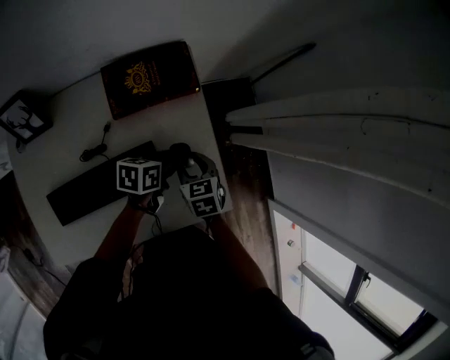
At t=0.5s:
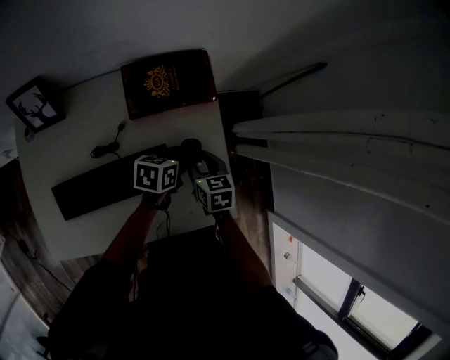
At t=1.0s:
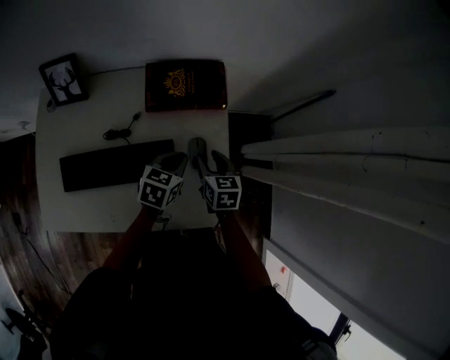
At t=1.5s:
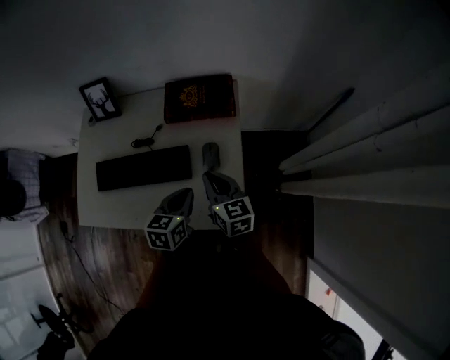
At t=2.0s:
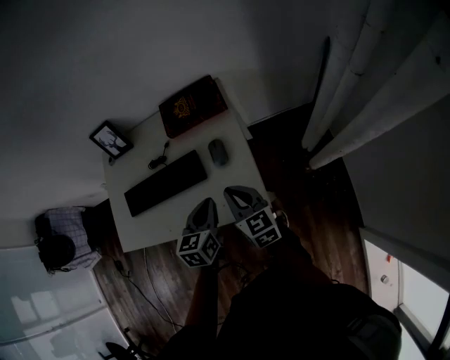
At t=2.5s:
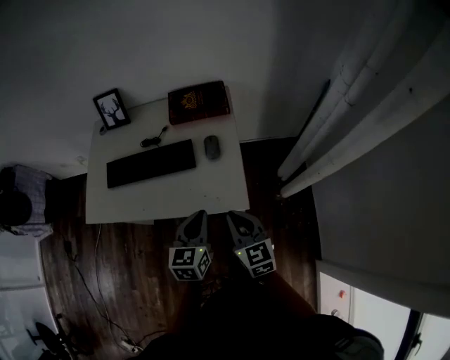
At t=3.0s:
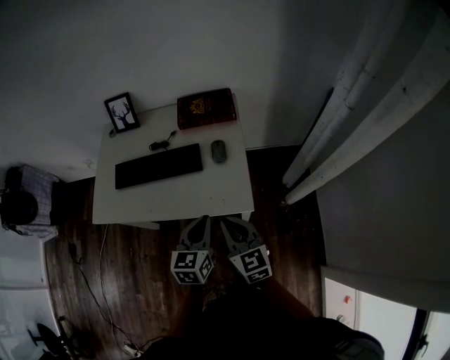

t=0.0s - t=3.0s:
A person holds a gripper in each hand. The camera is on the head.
t=0.0s - t=1.5s: The right gripper goes about 10 cm upward, angles its fingers upward, by some 40 degrees, and closes up, while the left gripper ends up approximately 15 cm from where it was, turns by approximately 40 degrees, and closes.
t=1.5s - t=3.0s: Both grippers move backward, approximately 20 cm.

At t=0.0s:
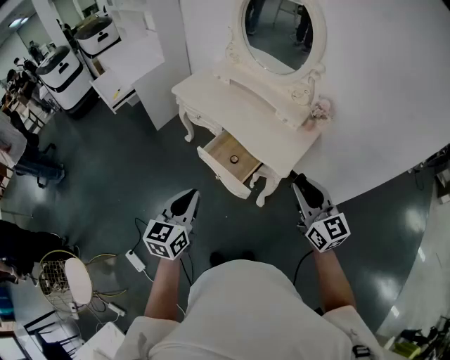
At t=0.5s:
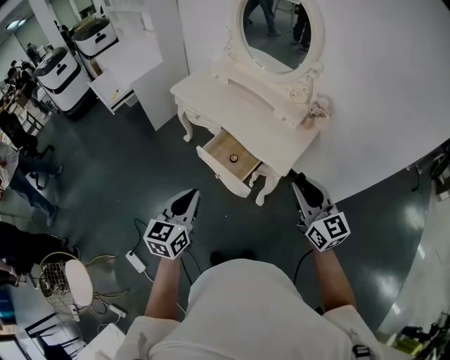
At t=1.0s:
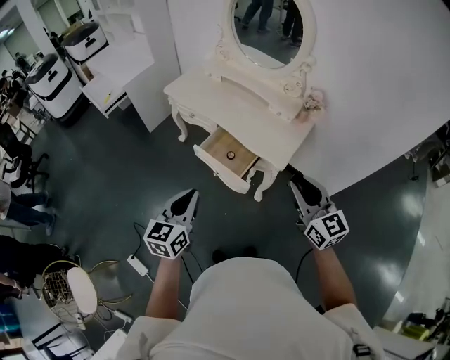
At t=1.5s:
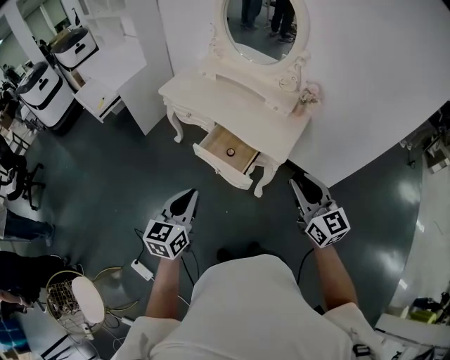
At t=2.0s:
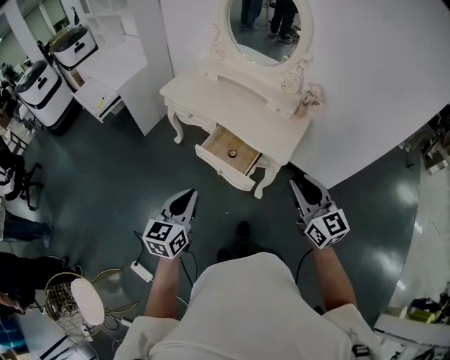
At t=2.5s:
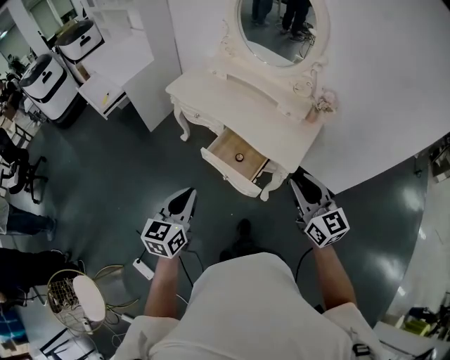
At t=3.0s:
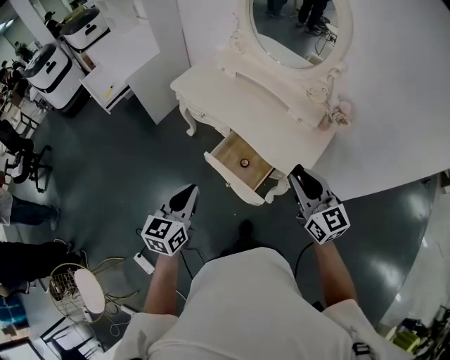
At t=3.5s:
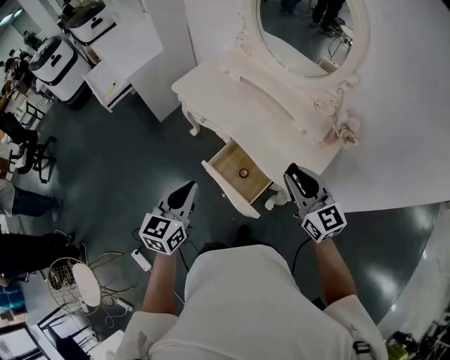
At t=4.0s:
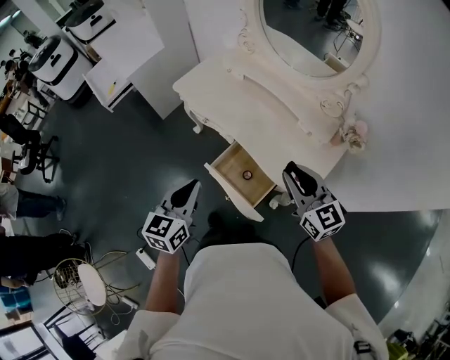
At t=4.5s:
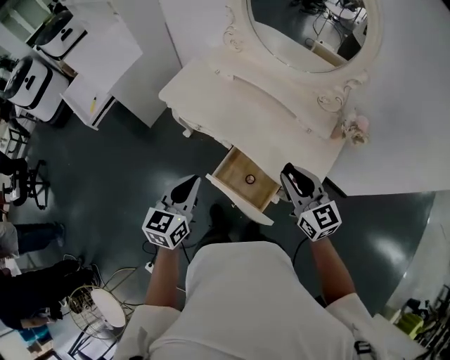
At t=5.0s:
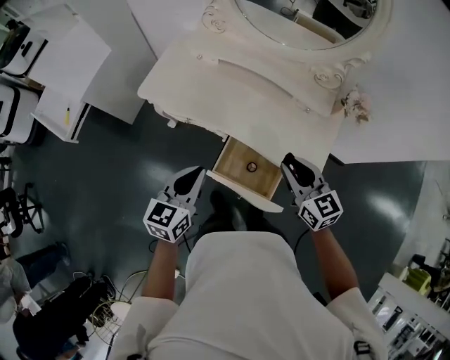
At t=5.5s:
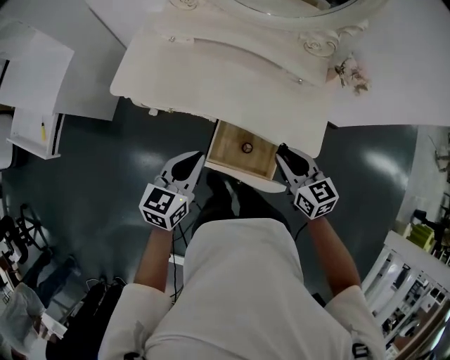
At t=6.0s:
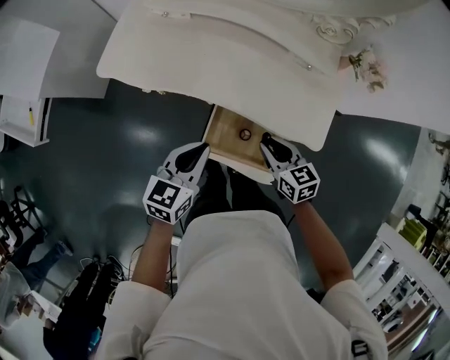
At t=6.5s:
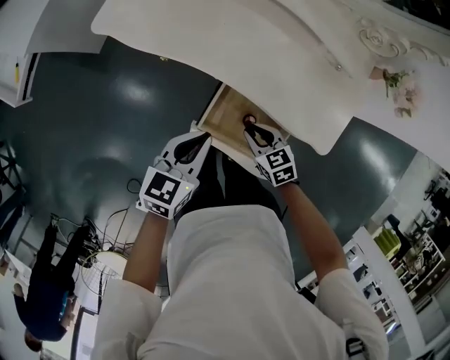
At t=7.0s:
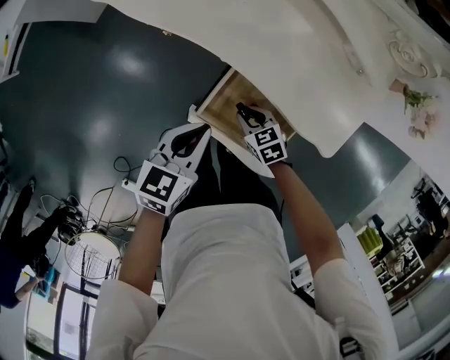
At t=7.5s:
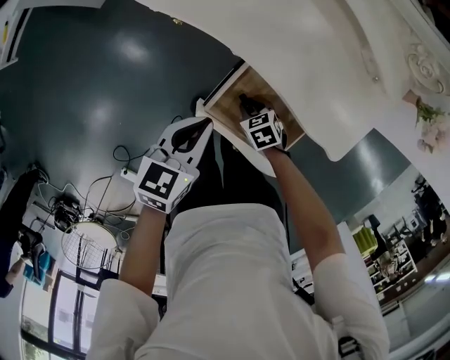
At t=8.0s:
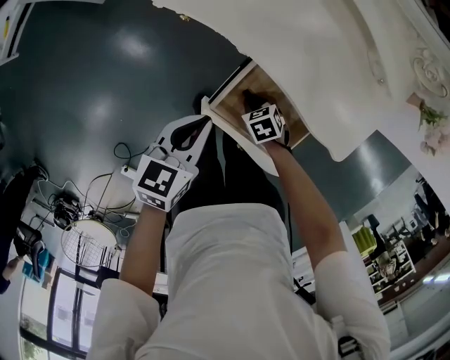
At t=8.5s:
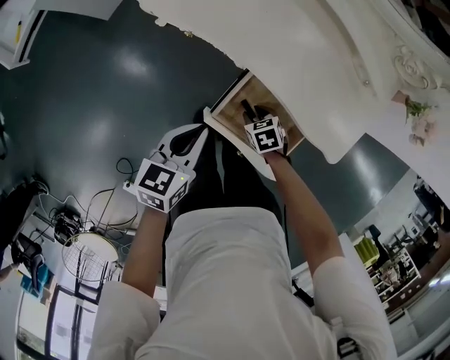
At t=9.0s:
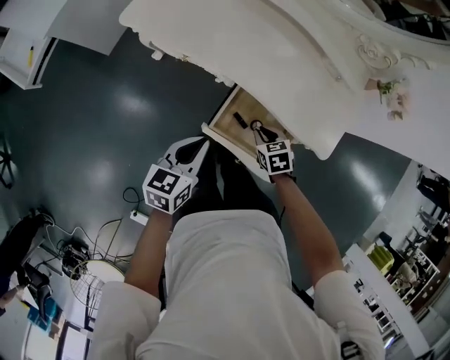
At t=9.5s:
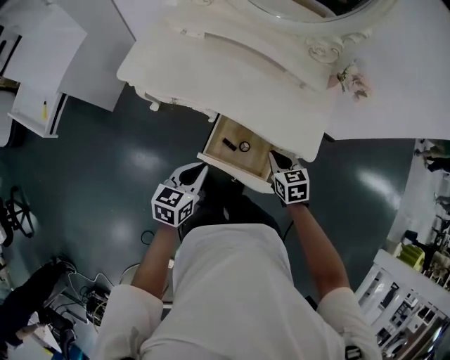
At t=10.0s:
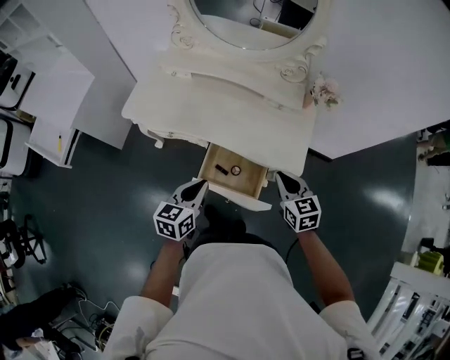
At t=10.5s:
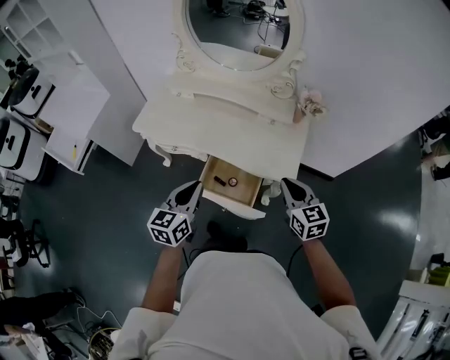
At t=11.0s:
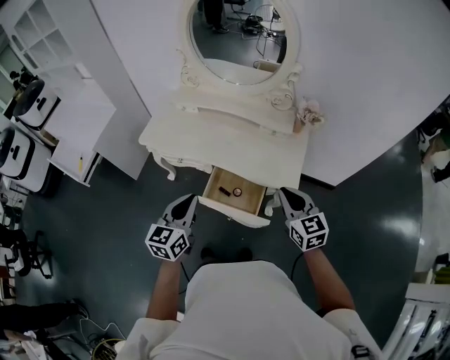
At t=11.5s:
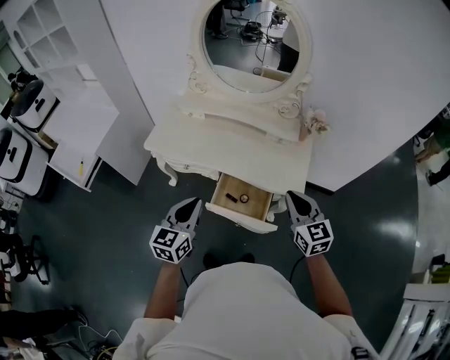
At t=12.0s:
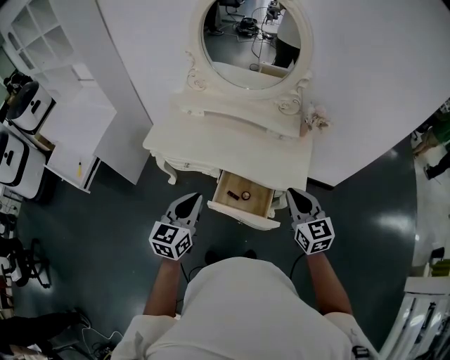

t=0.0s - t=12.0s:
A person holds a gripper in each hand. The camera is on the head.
t=0.0s - t=2.0s: Both grippers travel together to the left, about 5 cm.
t=2.0s - t=4.0s: Both grippers move forward, approximately 25 cm.
t=4.0s - t=6.0s: The right gripper heads downward, covering about 25 cm, and tilts its fingers some 30 degrees downward, while the left gripper shifts by about 20 cm, and turns by some 40 degrees.
t=6.0s - t=8.0s: The right gripper heads downward, covering some 25 cm, and tips its fingers downward by about 40 degrees; the left gripper is displaced downward by roughly 10 cm.
t=8.0s - t=10.0s: The left gripper travels upward by about 15 cm; the right gripper travels upward by approximately 40 cm, and tilts its fingers some 40 degrees upward.
t=10.0s - t=12.0s: The left gripper goes about 15 cm upward and to the left. The right gripper moves upward and backward, roughly 15 cm.

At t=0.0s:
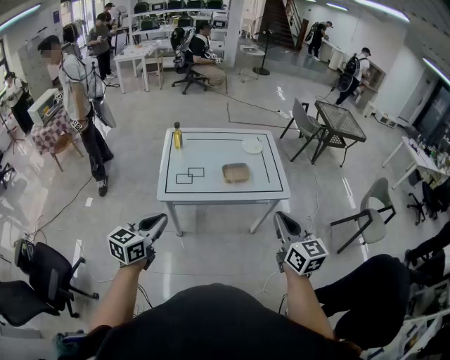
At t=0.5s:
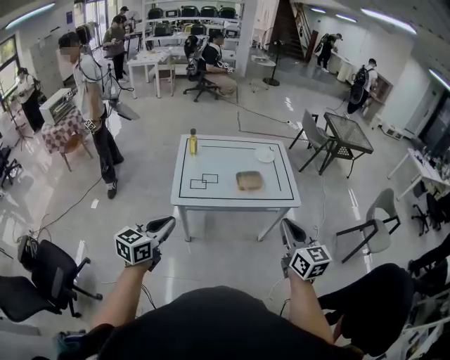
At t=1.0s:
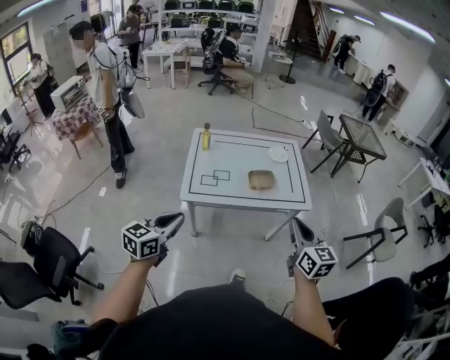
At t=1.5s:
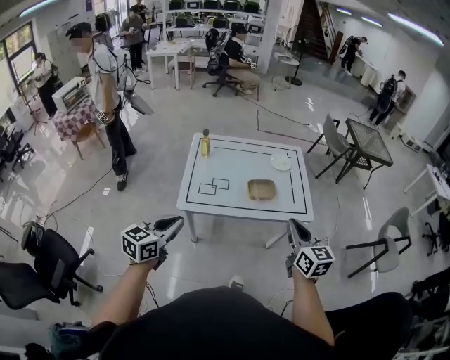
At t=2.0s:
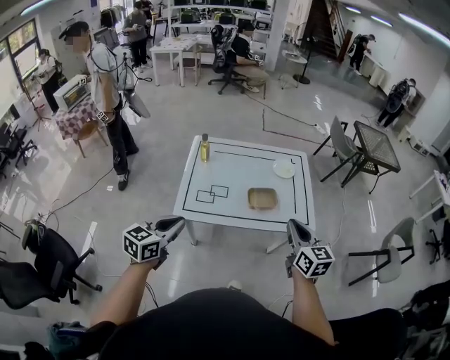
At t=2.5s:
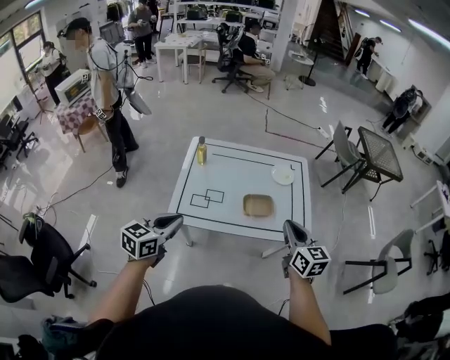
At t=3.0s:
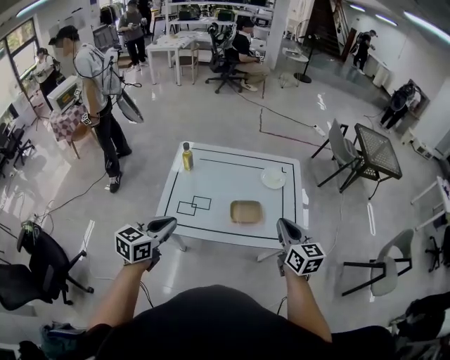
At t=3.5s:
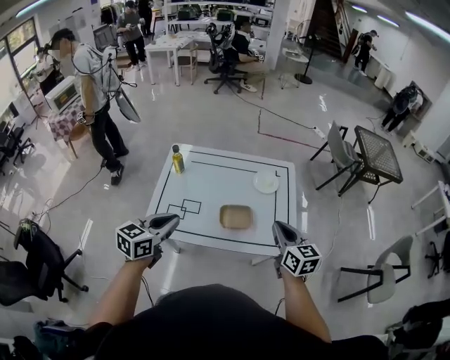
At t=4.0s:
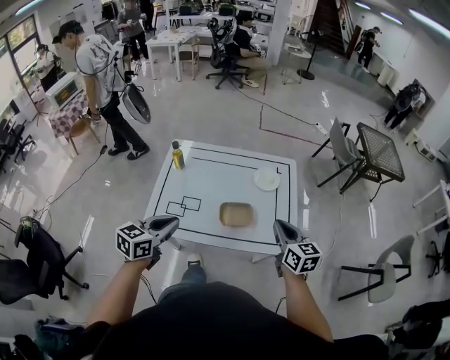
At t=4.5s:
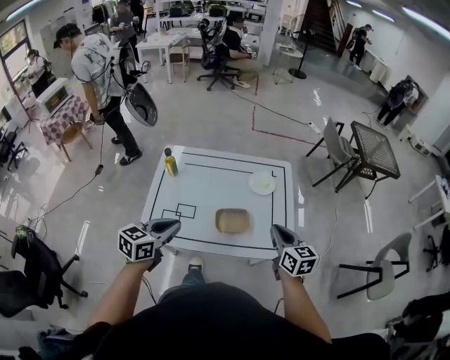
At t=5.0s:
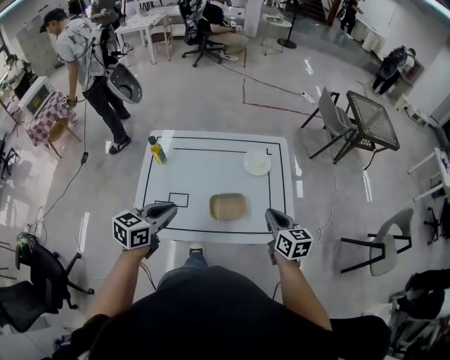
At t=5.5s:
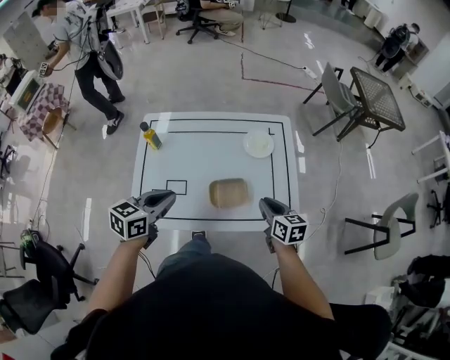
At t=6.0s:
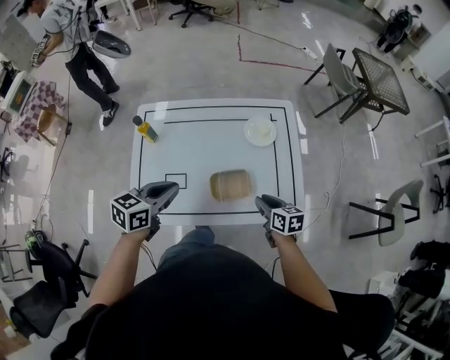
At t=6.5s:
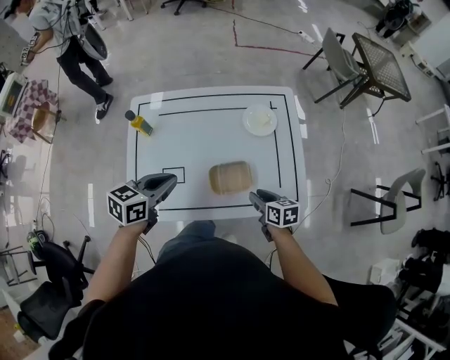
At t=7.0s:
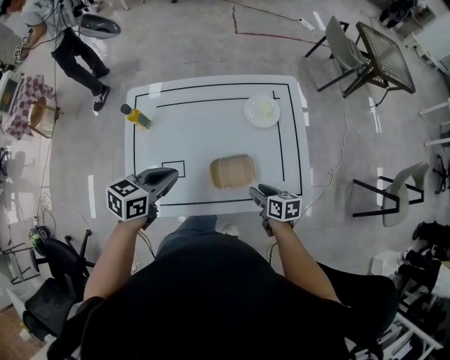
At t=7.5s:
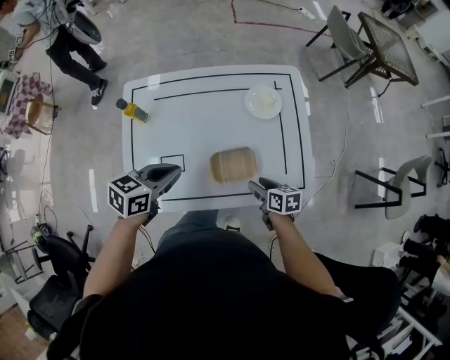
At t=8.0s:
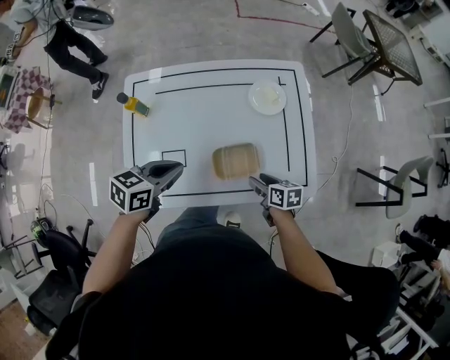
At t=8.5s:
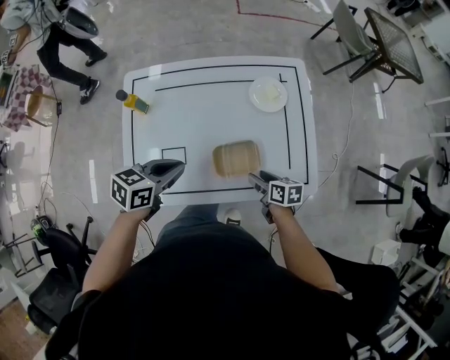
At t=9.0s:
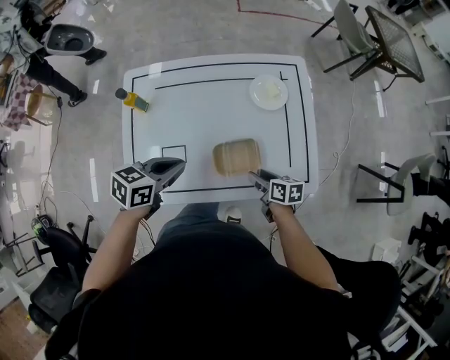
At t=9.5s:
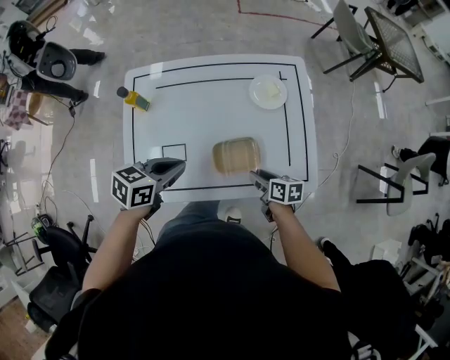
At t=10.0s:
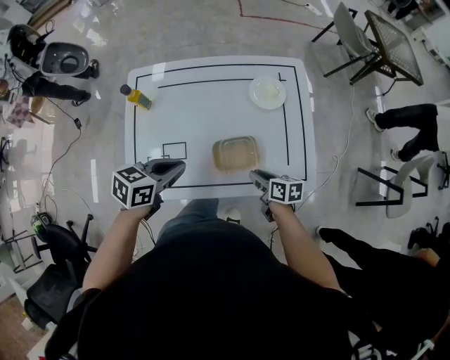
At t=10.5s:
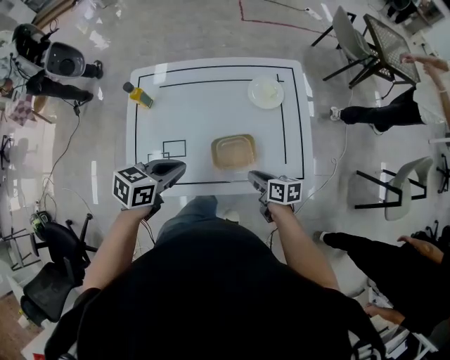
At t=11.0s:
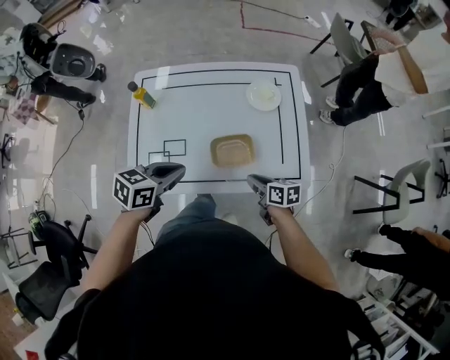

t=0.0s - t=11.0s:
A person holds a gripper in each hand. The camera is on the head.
t=0.0s - t=2.0s: Both grippers travel together forward, roughly 20 cm.
t=2.0s - t=3.5s: The two grippers go about 20 cm forward and to the right.
t=3.5s - t=5.5s: The right gripper is displaced downward and forward by approximately 20 cm. Meanwhile the left gripper heads forward and downward, covering about 15 cm.
t=5.5s - t=7.5s: The right gripper goes approximately 15 cm downward, turns by about 20 degrees, and opens its fingers. Meanwhile the left gripper travels downward and forward by roughly 15 cm.
t=7.5s - t=9.0s: The grippers make only small movements.
t=9.0s - t=11.0s: The left gripper is displaced backward by roughly 10 cm; the right gripper heads backward and upward, covering approximately 10 cm, and closes.
